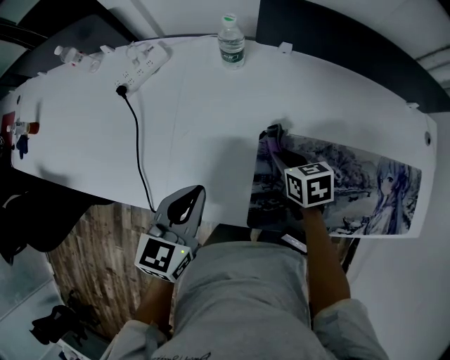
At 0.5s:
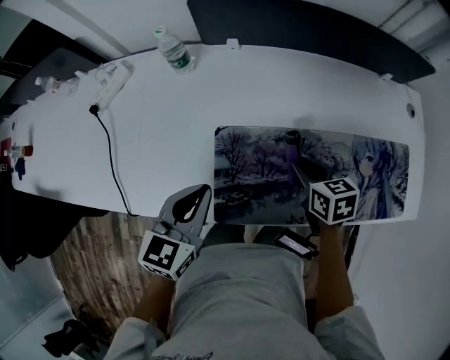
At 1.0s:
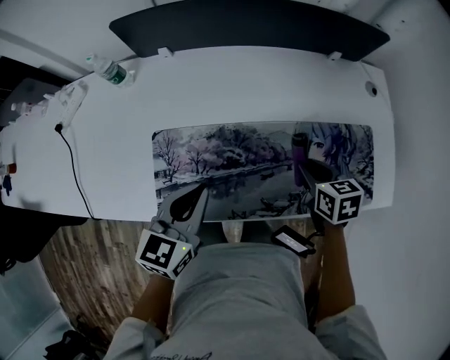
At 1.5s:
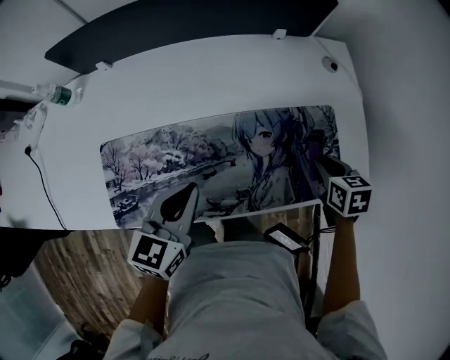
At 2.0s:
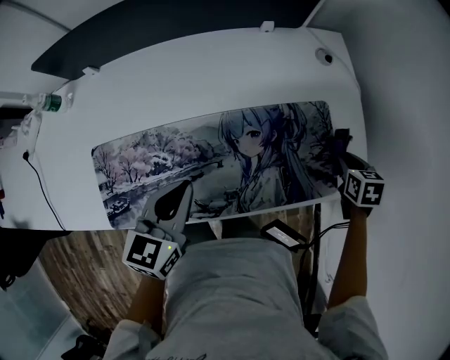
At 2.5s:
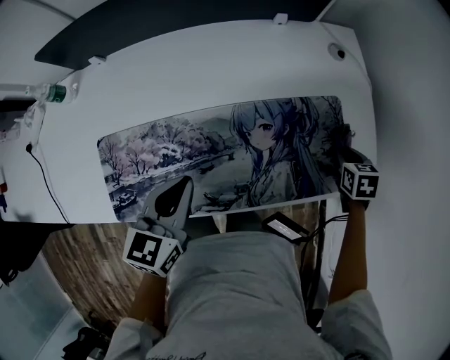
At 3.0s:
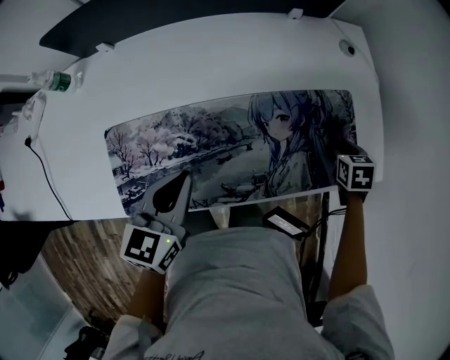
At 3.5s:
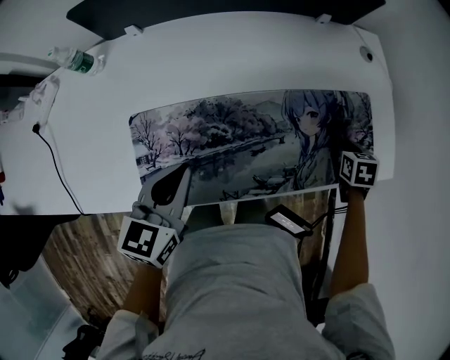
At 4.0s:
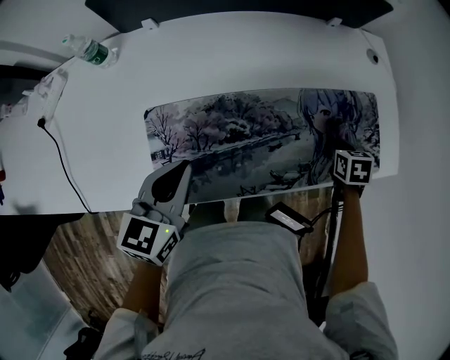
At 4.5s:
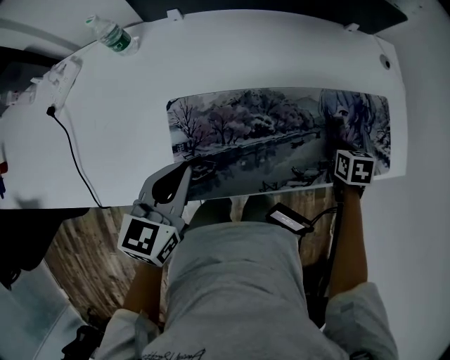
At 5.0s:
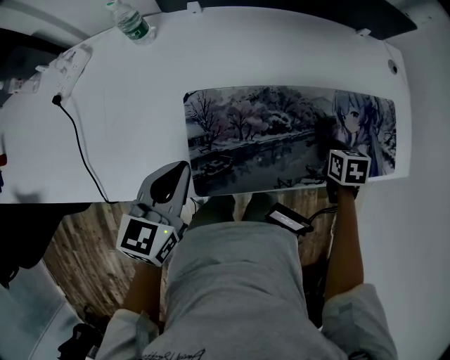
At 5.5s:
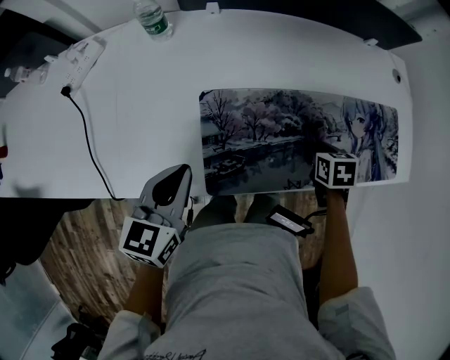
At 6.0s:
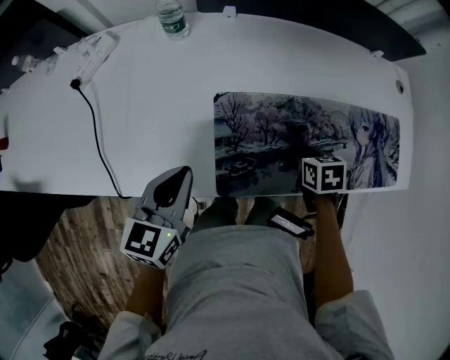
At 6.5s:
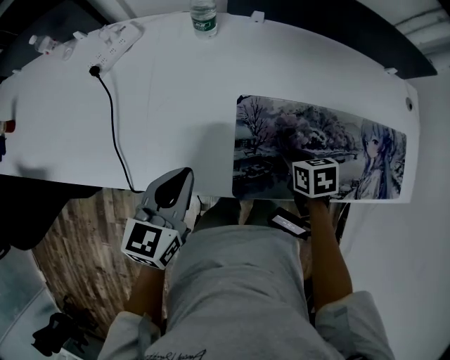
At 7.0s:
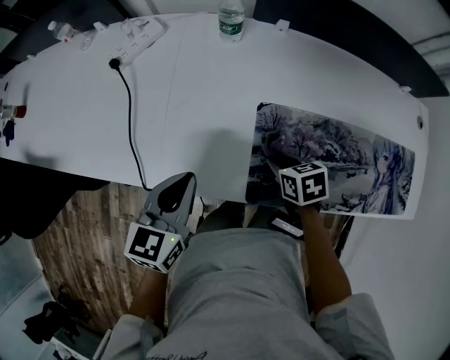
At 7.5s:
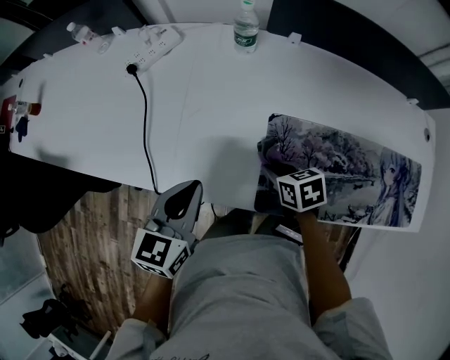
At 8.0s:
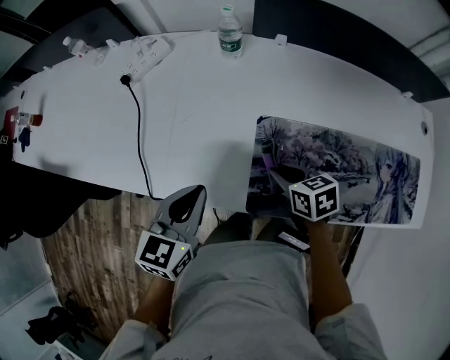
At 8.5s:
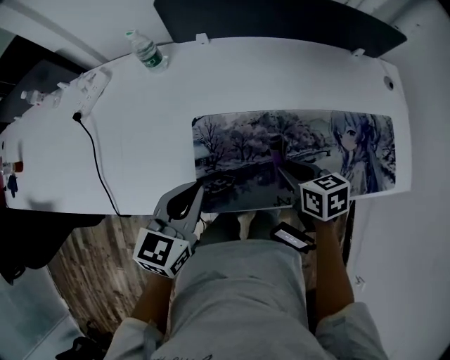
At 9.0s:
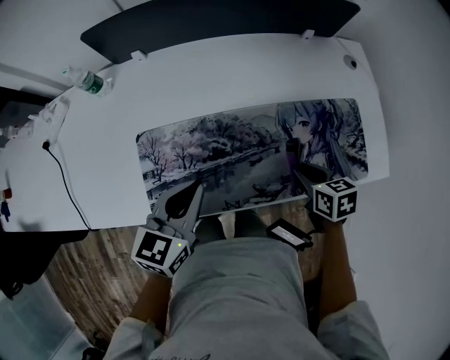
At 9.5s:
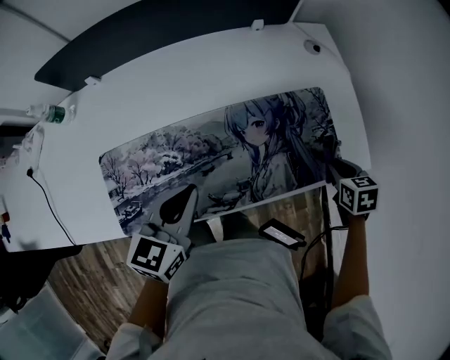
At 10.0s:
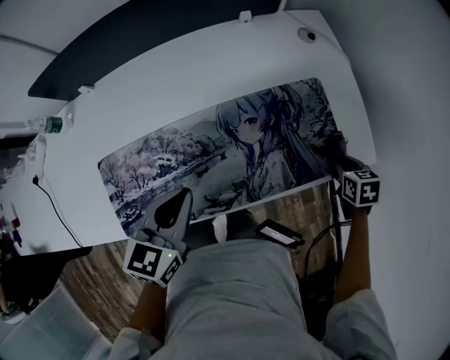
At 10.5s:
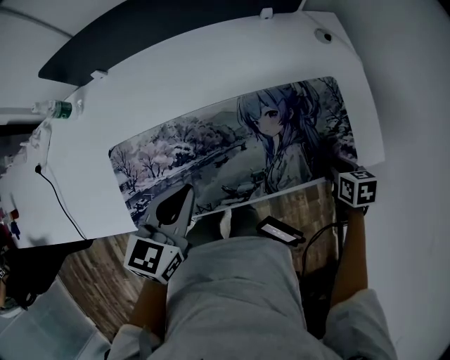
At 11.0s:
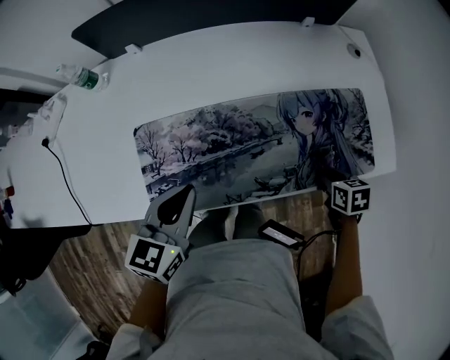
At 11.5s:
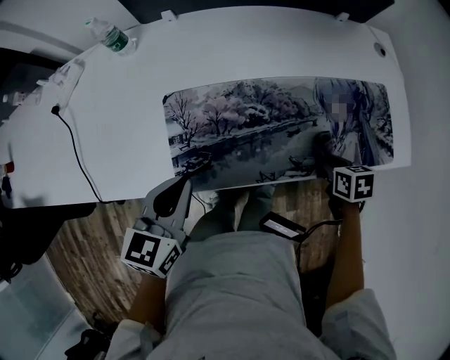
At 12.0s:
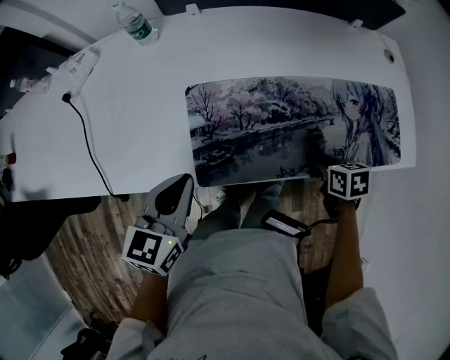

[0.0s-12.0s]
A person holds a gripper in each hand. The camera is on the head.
0.0s to 2.0s: The pair of grippers is taken some 60 cm. The right gripper changes its angle by some 30 degrees.
2.0s to 4.0s: The right gripper is displaced to the left by some 20 cm. The left gripper moves to the left and backward, roughly 25 cm.
4.0s to 6.0s: The right gripper is displaced to the left by some 30 cm. The left gripper is displaced to the left and backward by roughly 20 cm.
6.0s to 8.0s: The right gripper is displaced to the left by about 20 cm, and changes its angle by approximately 30 degrees. Meanwhile the left gripper moves to the left, approximately 5 cm.
8.0s to 10.0s: The two grippers travel together, approximately 60 cm. The right gripper swivels roughly 40 degrees, while the left gripper turns by about 20 degrees.
10.0s to 12.0s: The grippers both shift to the left by some 35 cm.

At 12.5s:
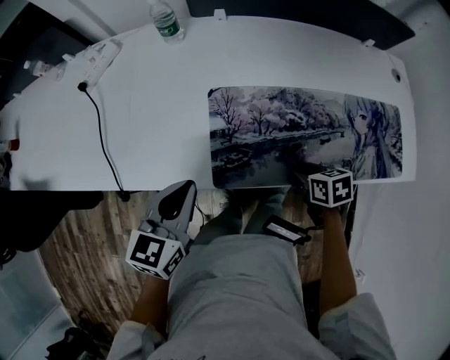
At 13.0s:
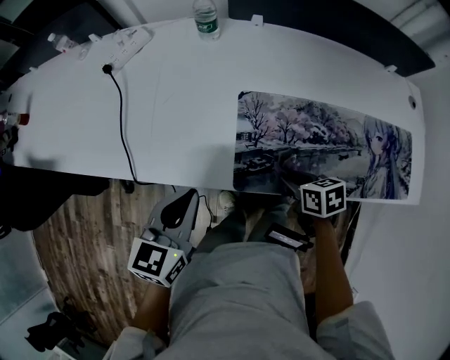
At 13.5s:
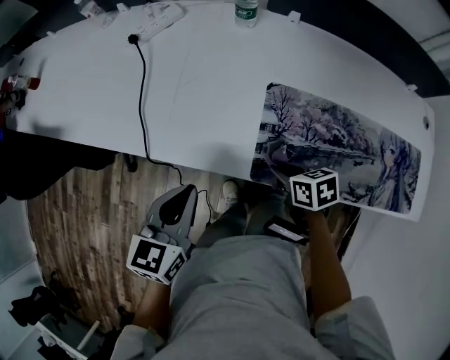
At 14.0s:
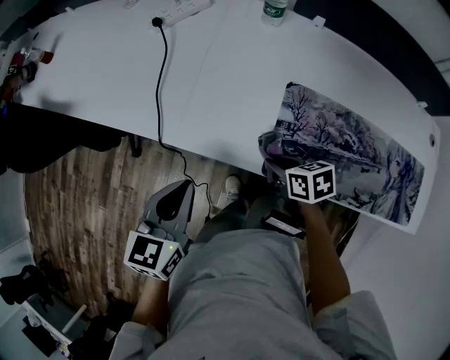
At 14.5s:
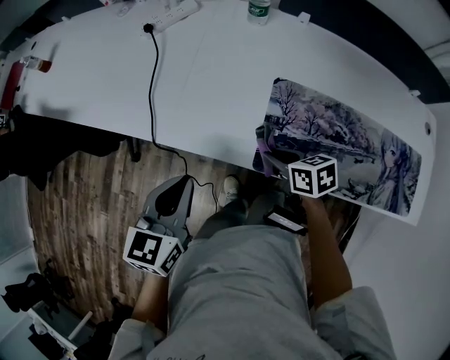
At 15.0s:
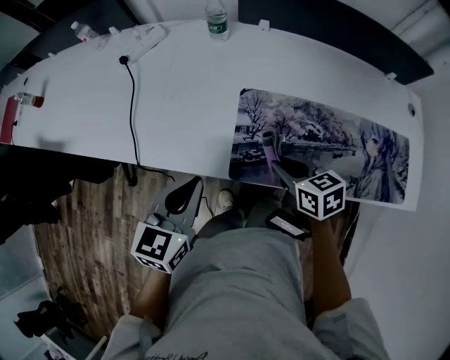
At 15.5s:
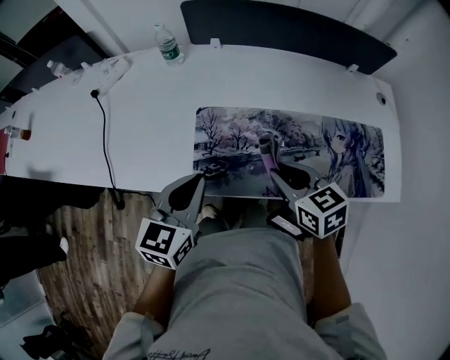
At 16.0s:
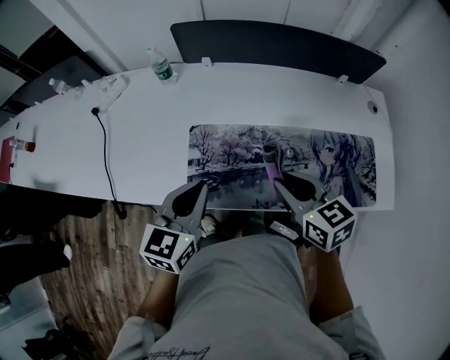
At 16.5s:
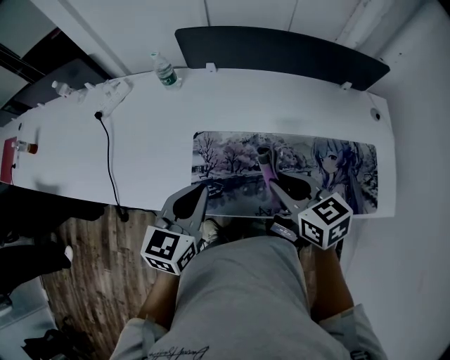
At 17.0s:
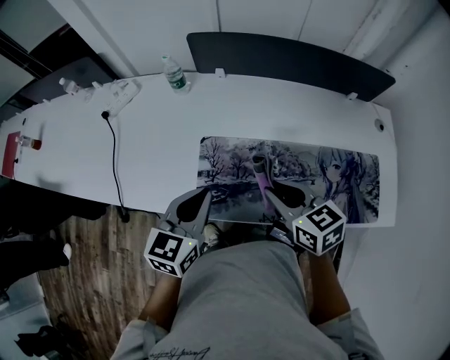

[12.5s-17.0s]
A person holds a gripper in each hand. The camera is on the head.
12.5s to 14.5s: The left gripper moves to the left, approximately 15 cm, while the right gripper travels to the left and forward by about 20 cm, and changes its angle by some 20 degrees.
14.5s to 17.0s: The right gripper goes approximately 25 cm to the right and upward, and swivels roughly 30 degrees. The left gripper heads to the right, covering approximately 25 cm.

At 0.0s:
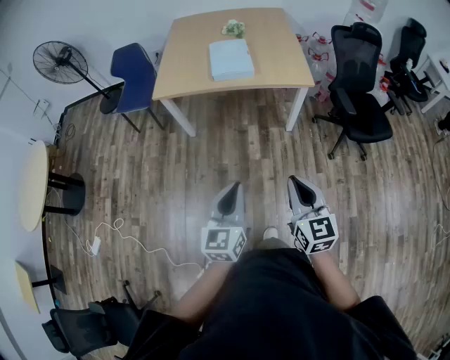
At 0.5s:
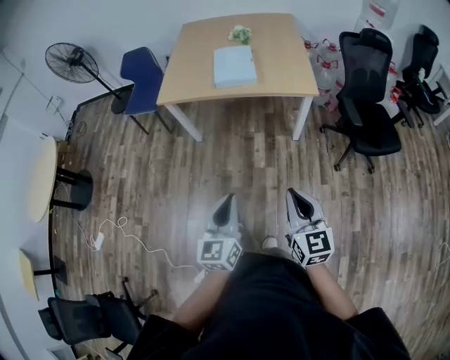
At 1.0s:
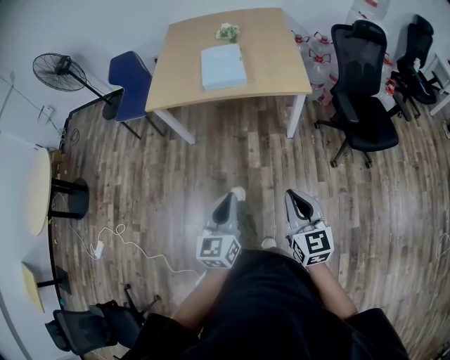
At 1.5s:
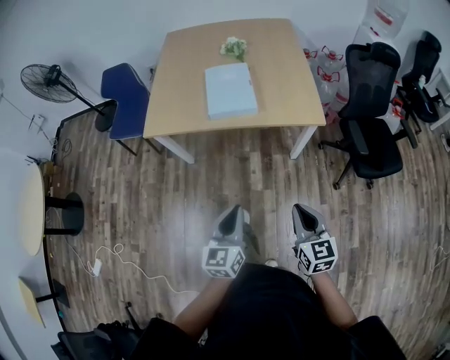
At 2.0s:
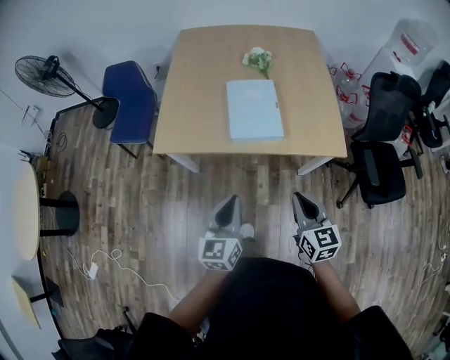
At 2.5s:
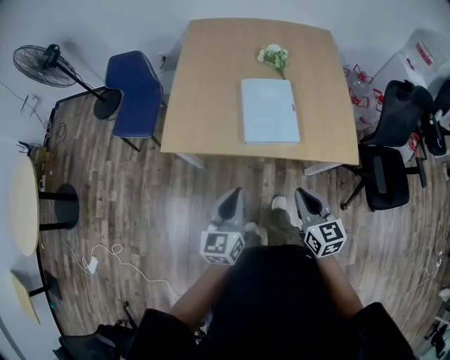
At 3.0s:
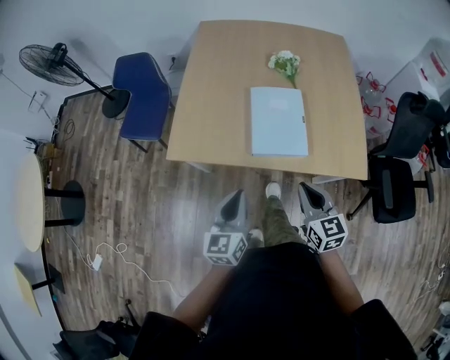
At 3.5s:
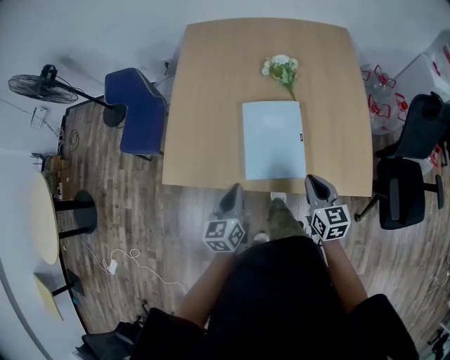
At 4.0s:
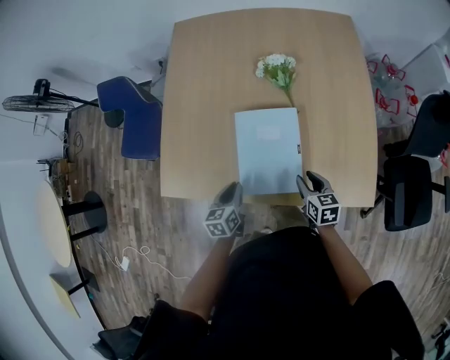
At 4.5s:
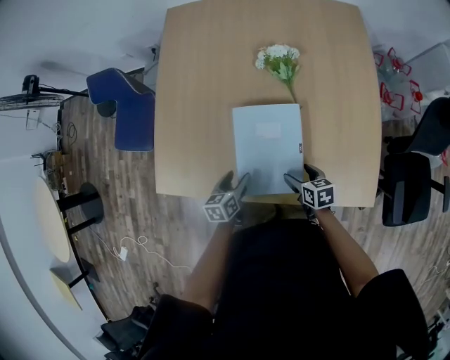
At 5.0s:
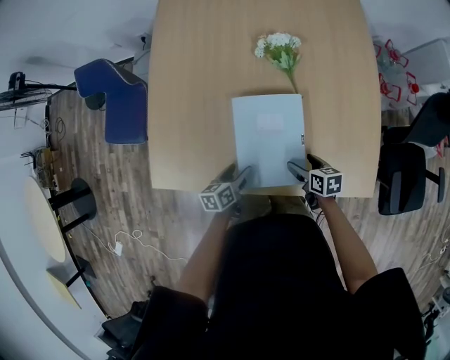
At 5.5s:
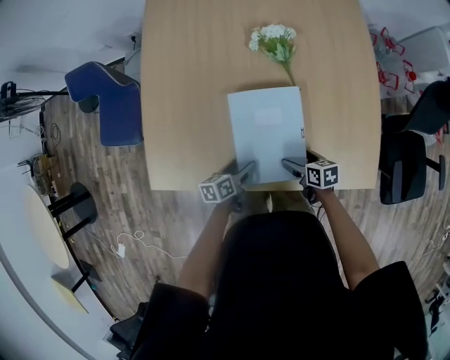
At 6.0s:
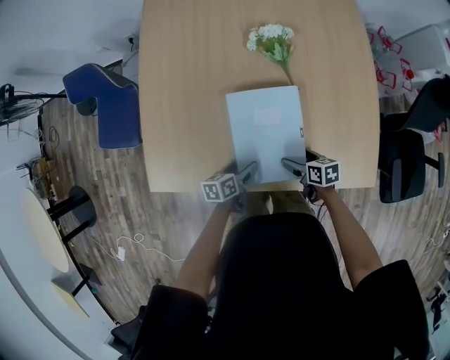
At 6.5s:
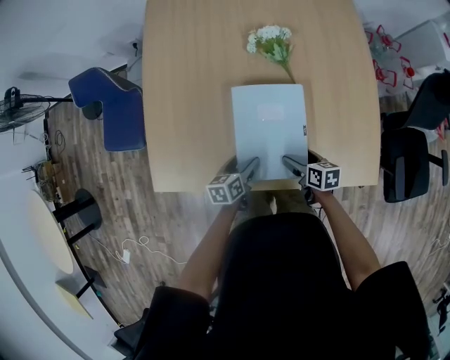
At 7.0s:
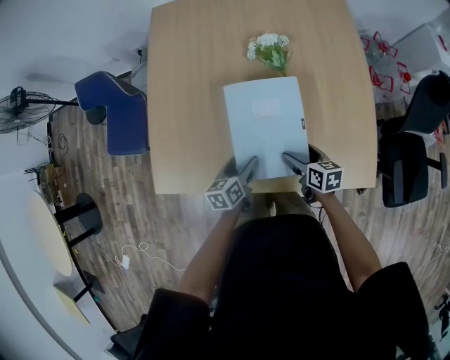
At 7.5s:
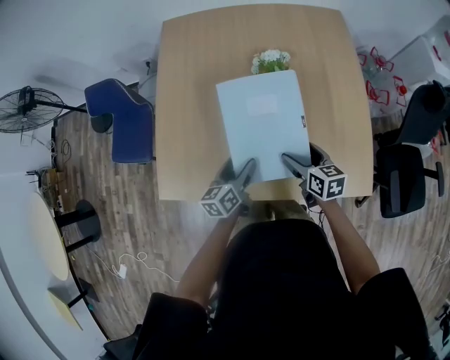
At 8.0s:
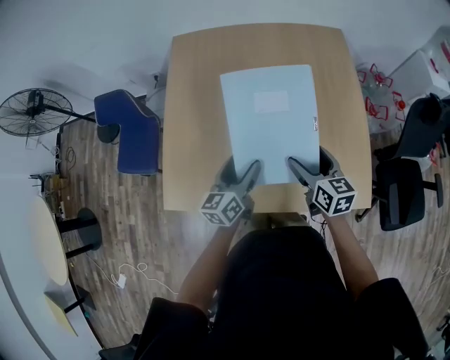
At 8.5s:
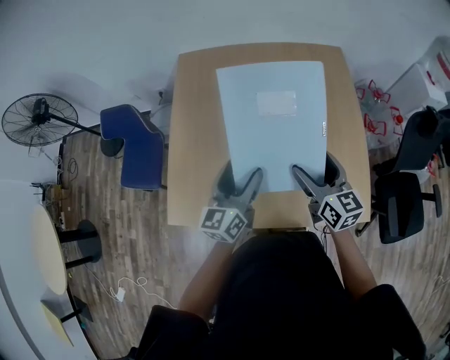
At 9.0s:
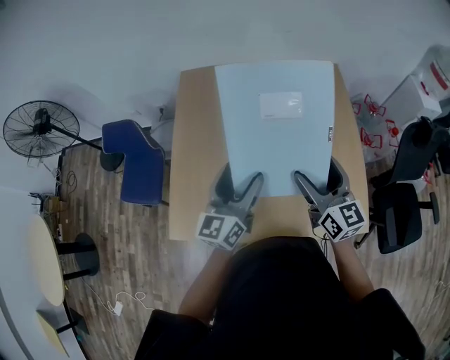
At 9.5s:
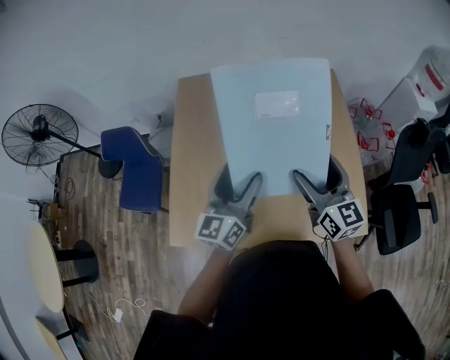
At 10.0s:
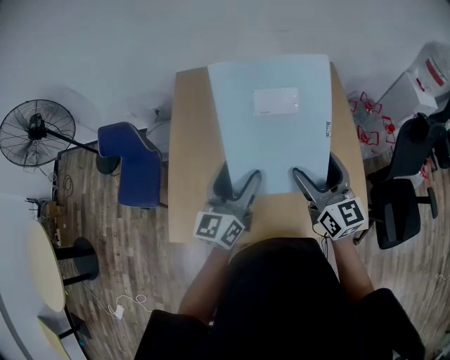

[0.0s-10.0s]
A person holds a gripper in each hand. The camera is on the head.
0.0s to 2.0s: The pair of grippers is taken forward, roughly 50 cm.
2.0s to 4.0s: Both grippers travel together forward and downward, about 50 cm. The left gripper rotates about 30 degrees. The right gripper turns by some 20 degrees.
4.0s to 6.0s: Both grippers travel together downward, roughly 10 cm. The right gripper changes its angle by approximately 20 degrees, and opens up. Meanwhile the left gripper changes its angle by approximately 30 degrees, and opens up.
6.0s to 8.0s: The two grippers go approximately 25 cm upward. The right gripper changes its angle by roughly 40 degrees; the left gripper rotates about 40 degrees.
8.0s to 10.0s: The grippers both shift upward by approximately 15 cm. The left gripper rotates roughly 20 degrees, while the right gripper swivels some 30 degrees.
